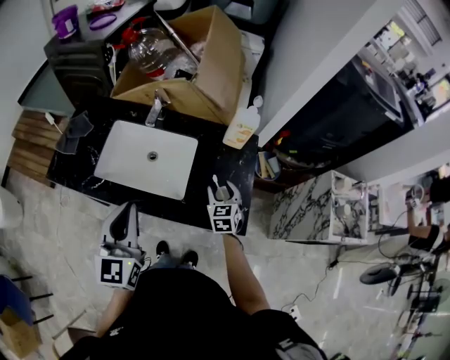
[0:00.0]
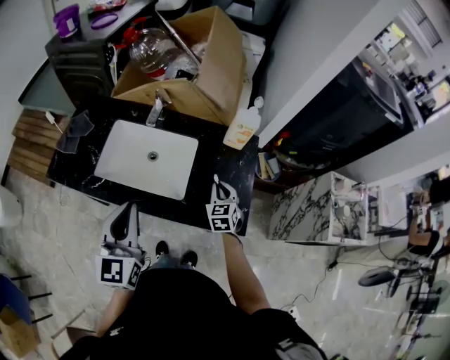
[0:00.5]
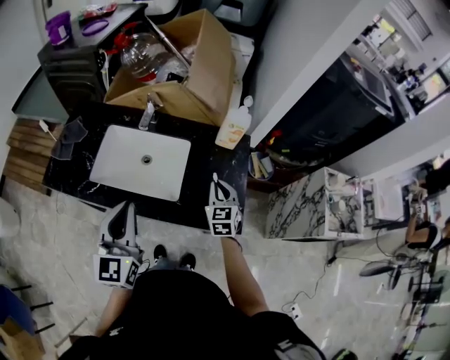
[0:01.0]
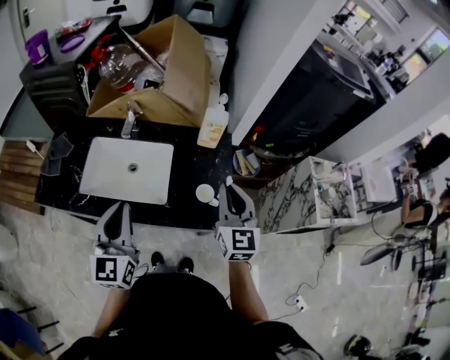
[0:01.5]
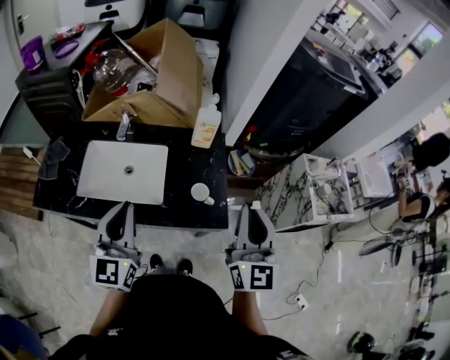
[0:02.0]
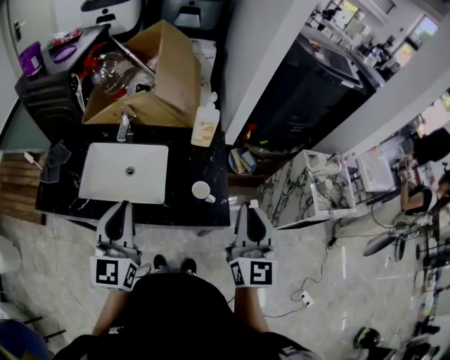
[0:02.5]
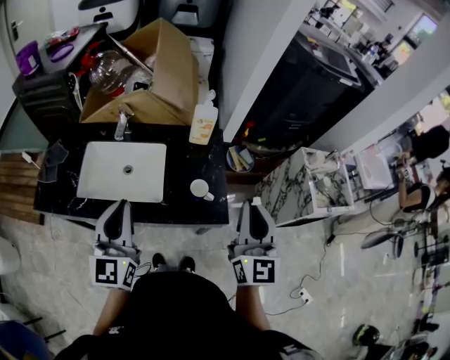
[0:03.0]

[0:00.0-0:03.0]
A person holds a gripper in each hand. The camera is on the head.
0:00.0 to 0:01.5: The right gripper moves upward, approximately 25 cm, changes its angle by some 30 degrees, and closes.
0:01.5 to 0:03.0: The right gripper is displaced backward, upward and to the right by roughly 15 cm.

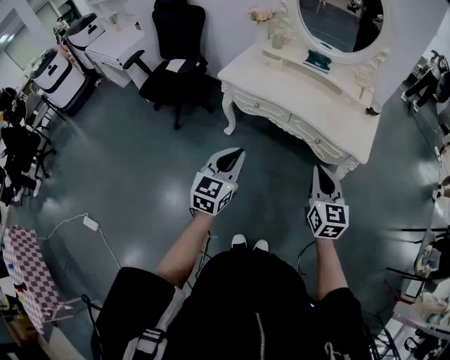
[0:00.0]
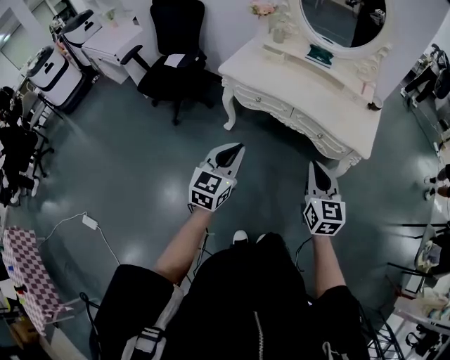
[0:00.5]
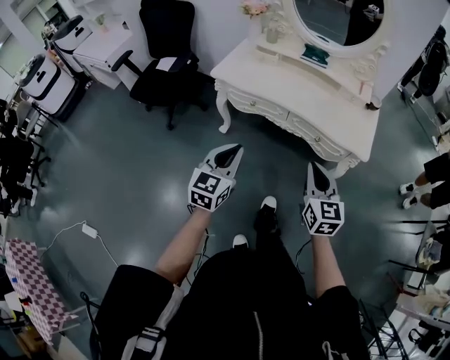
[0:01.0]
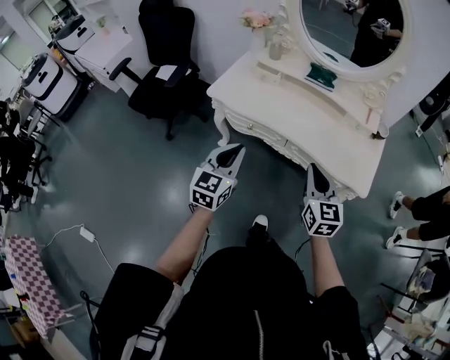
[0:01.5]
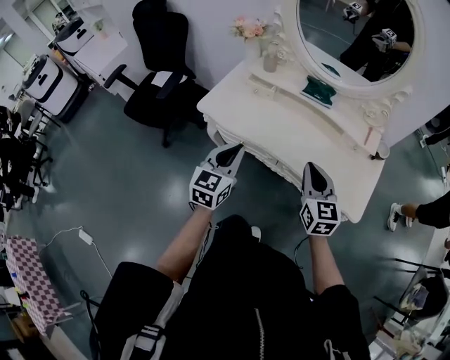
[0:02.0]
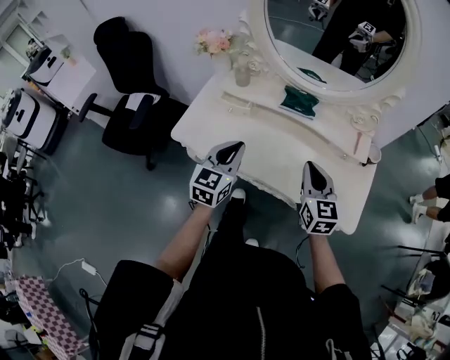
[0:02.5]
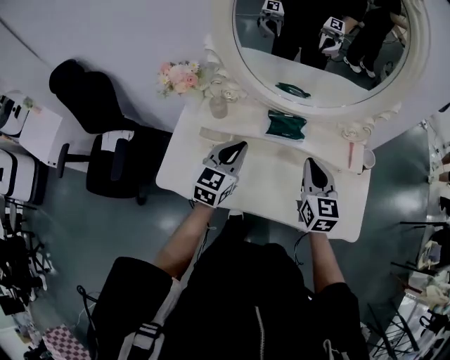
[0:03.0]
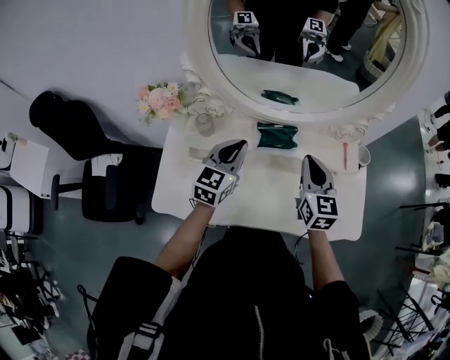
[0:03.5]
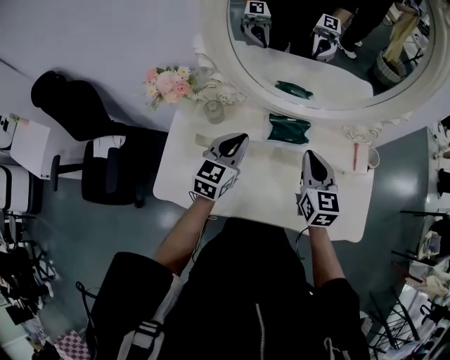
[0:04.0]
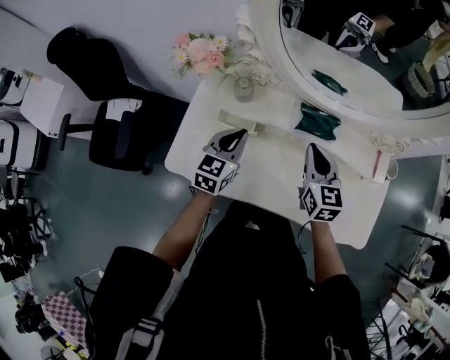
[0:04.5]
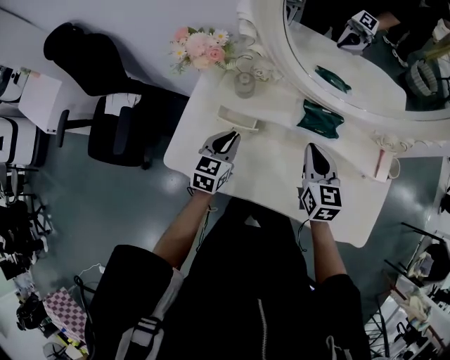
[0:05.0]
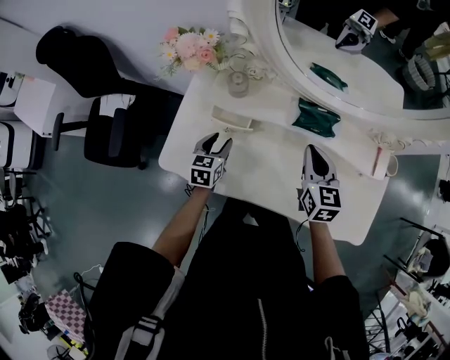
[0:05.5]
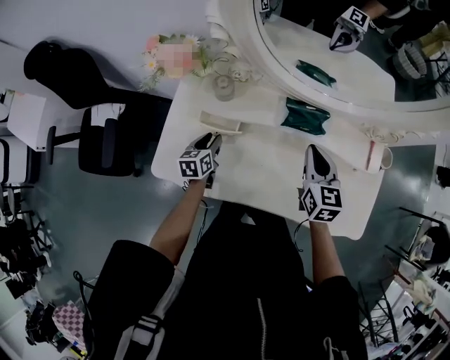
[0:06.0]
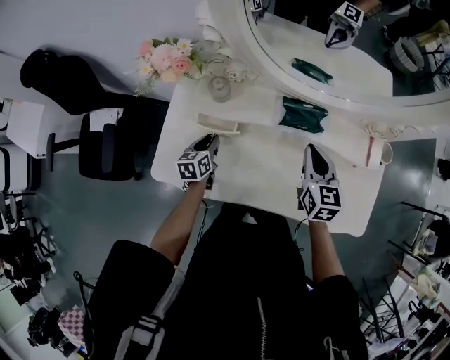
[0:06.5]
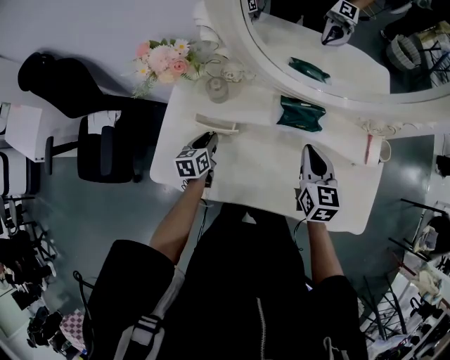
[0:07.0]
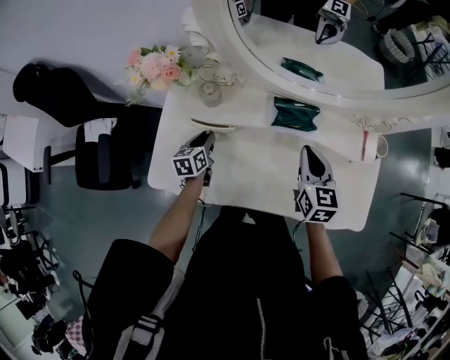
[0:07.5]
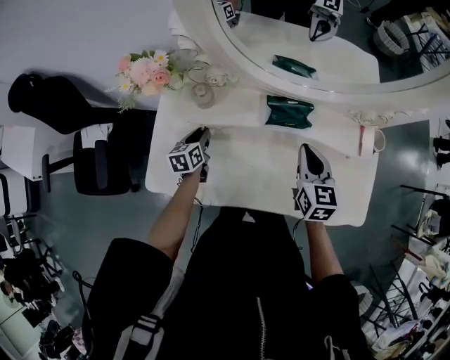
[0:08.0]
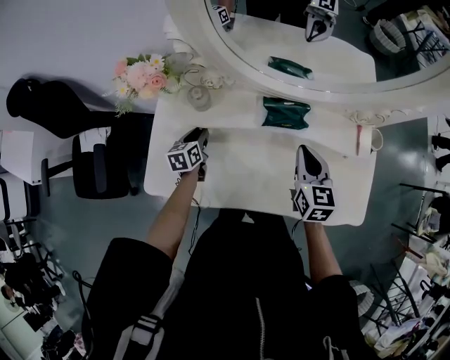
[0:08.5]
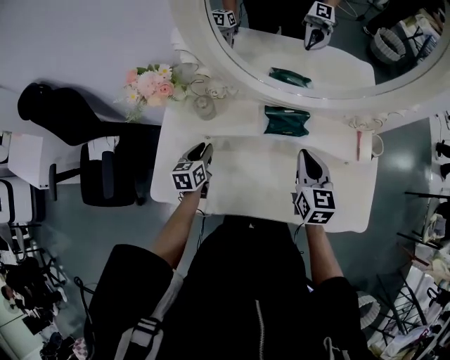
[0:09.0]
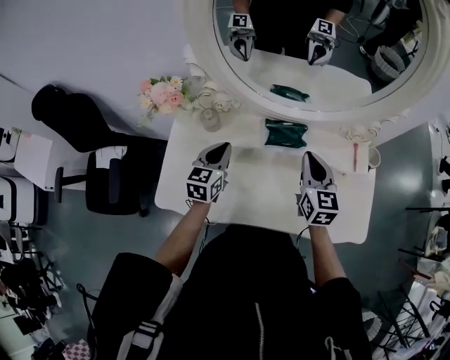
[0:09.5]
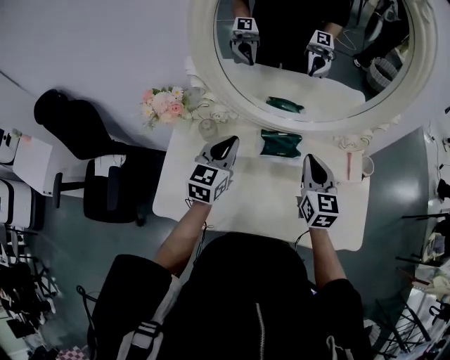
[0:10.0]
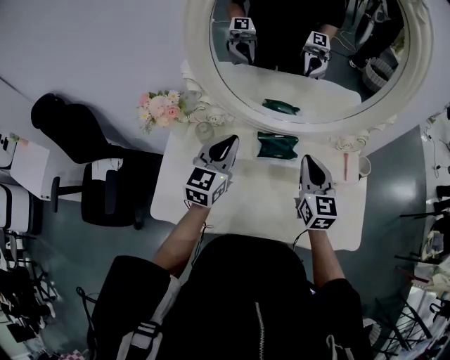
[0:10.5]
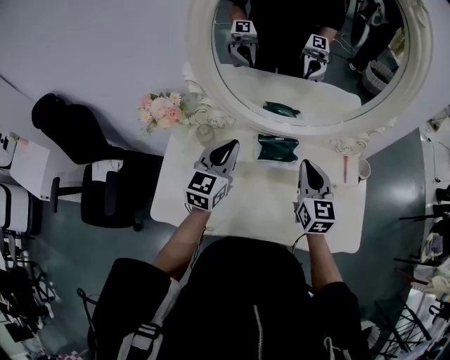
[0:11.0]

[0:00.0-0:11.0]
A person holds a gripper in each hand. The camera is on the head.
0:00.0 to 0:02.0: Both grippers move forward, about 30 cm.
0:02.0 to 0:03.5: The left gripper ends up some 40 cm from where it was, and swivels about 30 degrees; the right gripper changes place by some 30 cm, and swivels roughly 30 degrees.
0:03.5 to 0:05.5: The right gripper moves to the left and downward, roughly 10 cm. Meanwhile the left gripper travels downward and to the left by approximately 25 cm, changes its angle by approximately 40 degrees, and opens.
0:05.5 to 0:07.5: The left gripper travels forward by roughly 5 cm, and closes up.
0:07.5 to 0:09.0: There are only small adjustments of the grippers.
0:09.0 to 0:11.0: The left gripper moves upward and to the right, roughly 25 cm, changes its angle by approximately 40 degrees, and closes its fingers, while the right gripper goes some 5 cm upward.

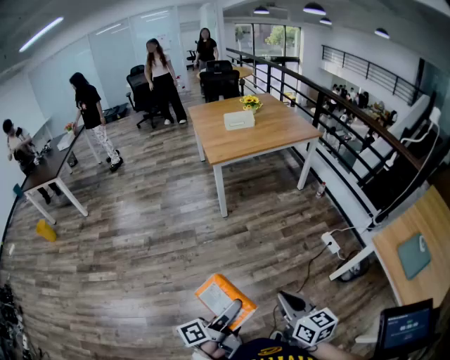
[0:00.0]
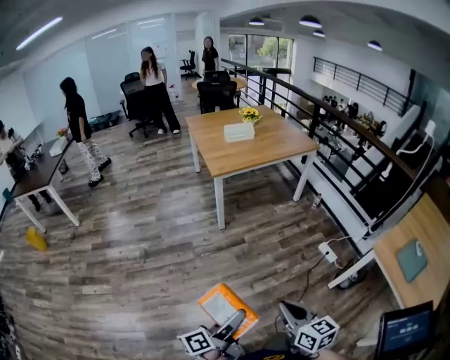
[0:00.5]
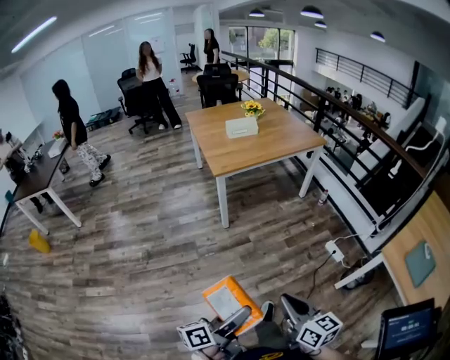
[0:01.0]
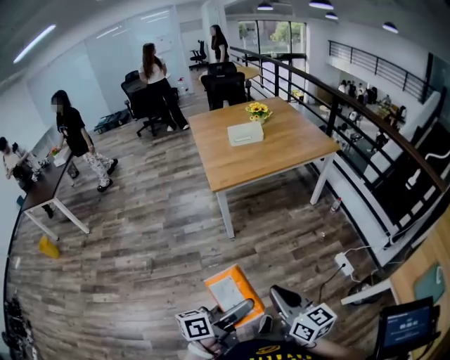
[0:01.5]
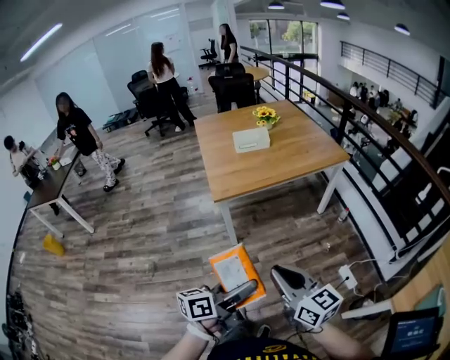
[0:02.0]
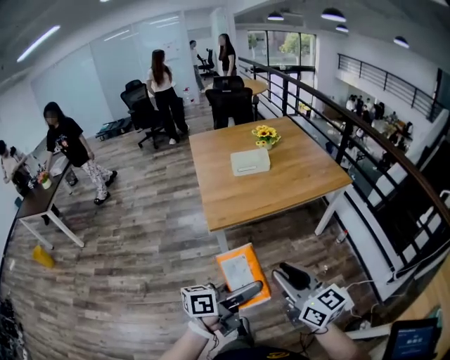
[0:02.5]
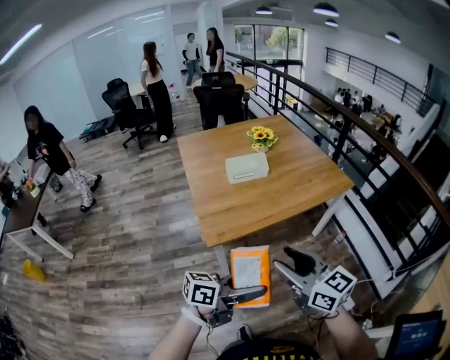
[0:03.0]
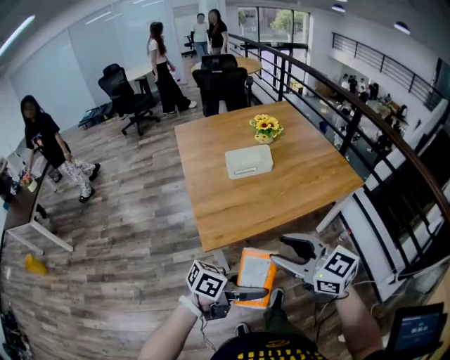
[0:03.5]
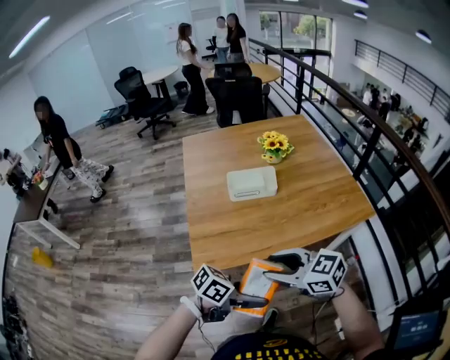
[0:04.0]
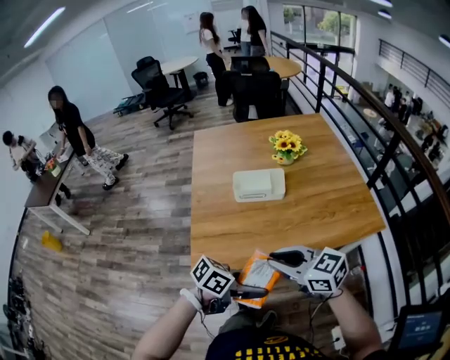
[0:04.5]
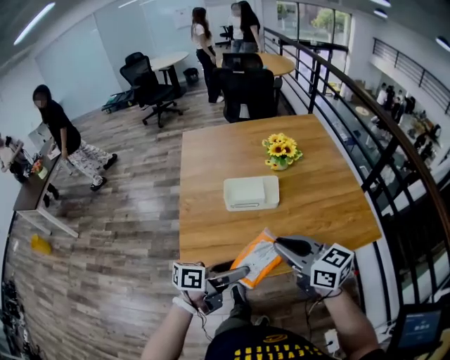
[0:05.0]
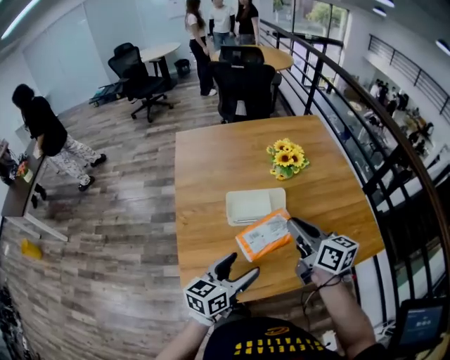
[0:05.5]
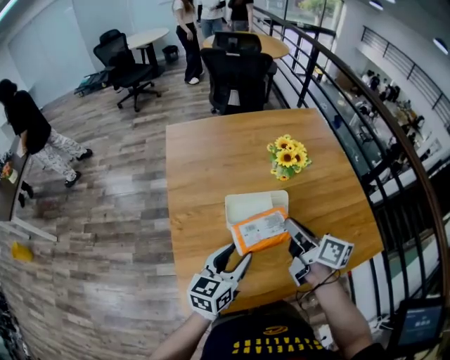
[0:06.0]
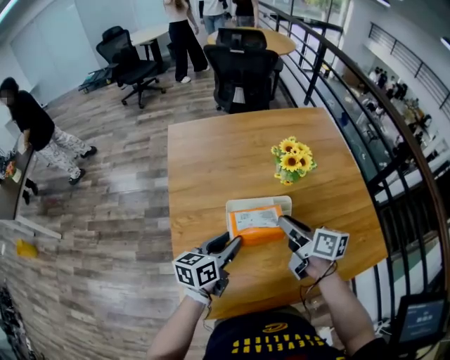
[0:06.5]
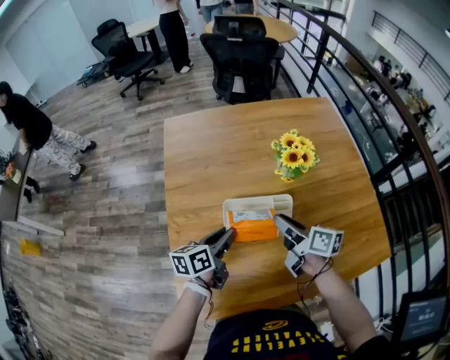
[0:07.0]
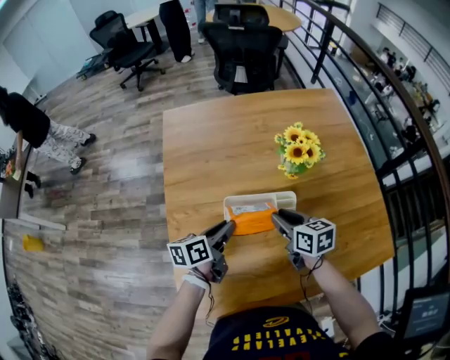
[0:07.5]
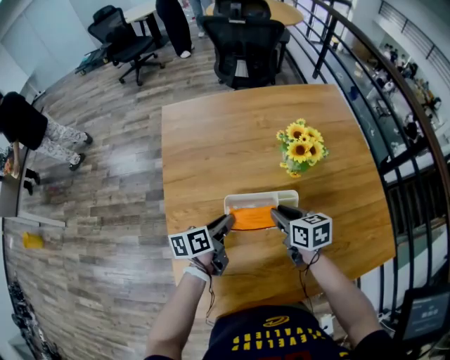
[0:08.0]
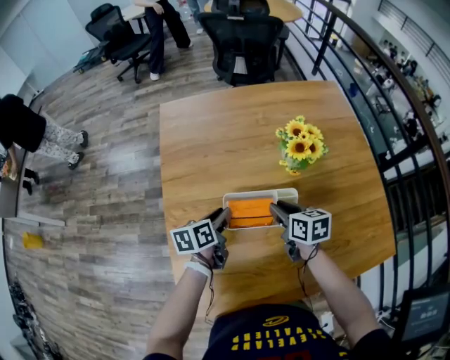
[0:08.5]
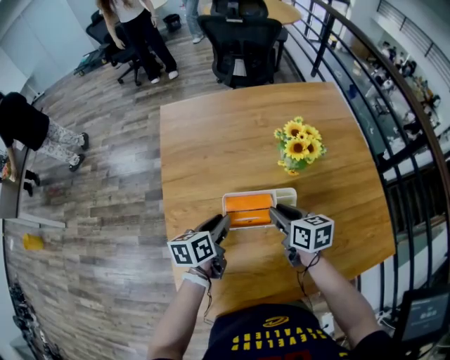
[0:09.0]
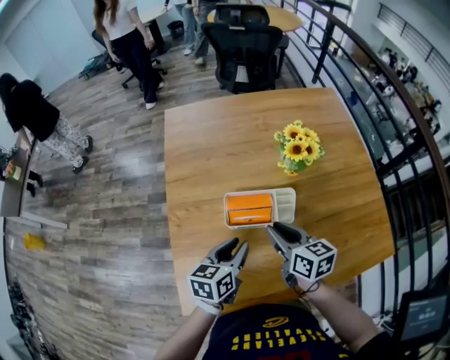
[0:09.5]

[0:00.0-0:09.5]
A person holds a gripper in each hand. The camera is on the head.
0:00.0 to 0:02.0: The two grippers go roughly 35 cm forward. The left gripper turns by some 30 degrees.
0:02.0 to 0:04.0: The right gripper changes place by about 40 cm, rotates some 40 degrees, and opens its fingers, while the left gripper moves some 40 cm, and changes its angle by approximately 40 degrees.
0:04.0 to 0:05.5: The right gripper ends up about 35 cm from where it was, turns by roughly 40 degrees, and closes its fingers, while the left gripper shifts by about 30 cm, and turns by roughly 50 degrees.
0:05.5 to 0:07.5: The right gripper shifts roughly 20 cm downward and forward, and swivels roughly 20 degrees. The left gripper travels forward and downward by roughly 25 cm, rotates approximately 30 degrees, and closes up.
0:07.5 to 0:09.5: The grippers both shift backward by about 5 cm. The left gripper swivels about 20 degrees.

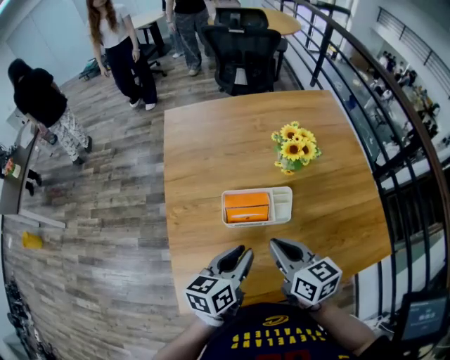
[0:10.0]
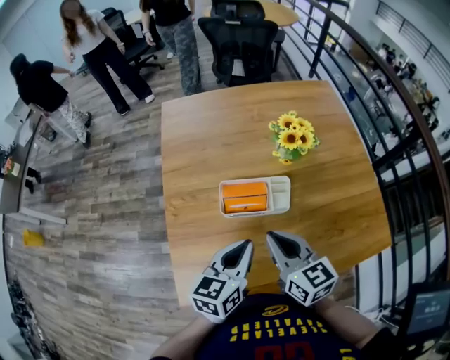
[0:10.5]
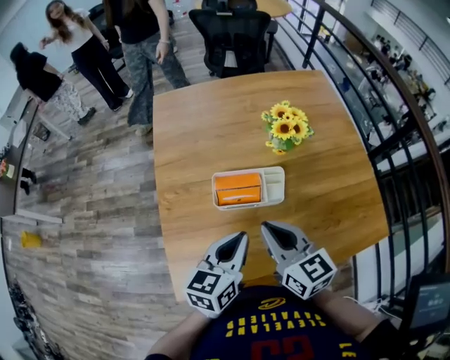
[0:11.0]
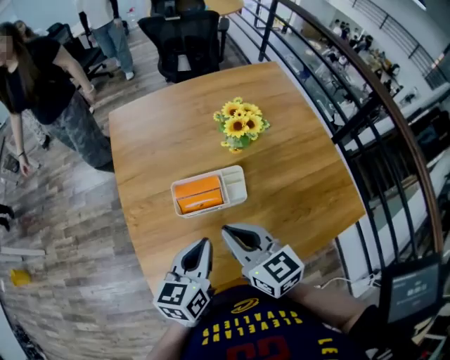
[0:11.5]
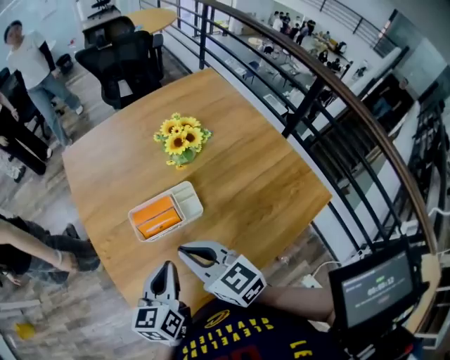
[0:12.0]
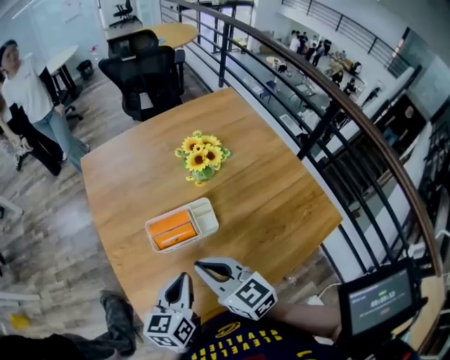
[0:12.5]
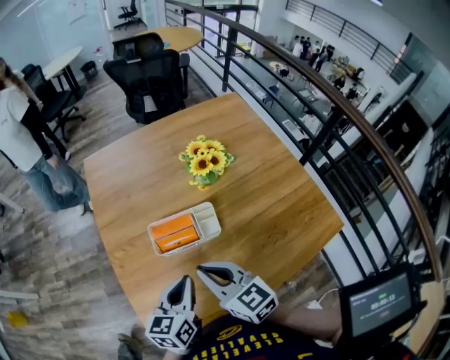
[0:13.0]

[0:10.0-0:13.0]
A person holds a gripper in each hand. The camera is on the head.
0:10.0 to 0:13.0: The grippers make only small movements.
